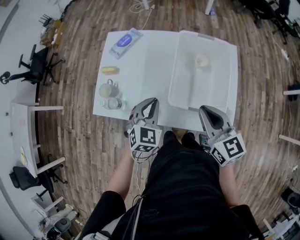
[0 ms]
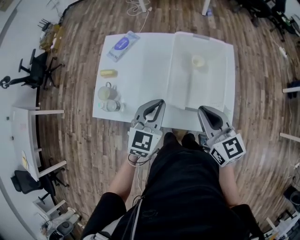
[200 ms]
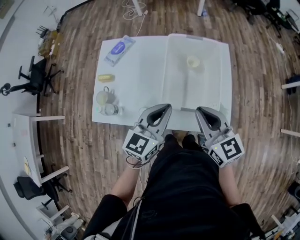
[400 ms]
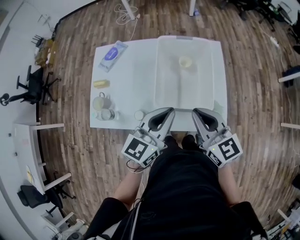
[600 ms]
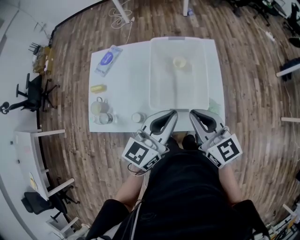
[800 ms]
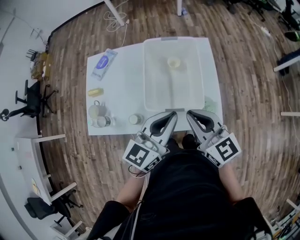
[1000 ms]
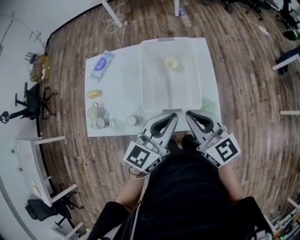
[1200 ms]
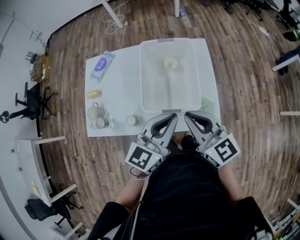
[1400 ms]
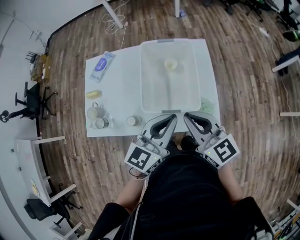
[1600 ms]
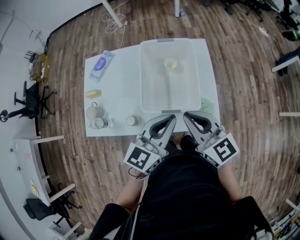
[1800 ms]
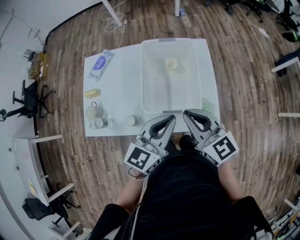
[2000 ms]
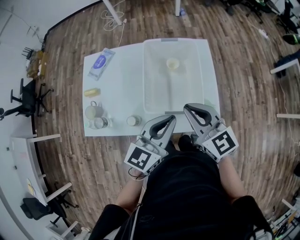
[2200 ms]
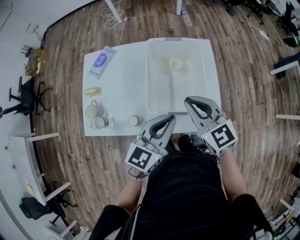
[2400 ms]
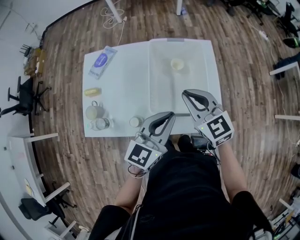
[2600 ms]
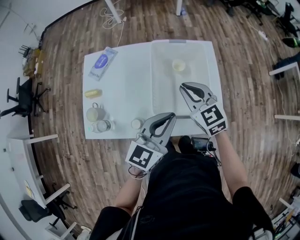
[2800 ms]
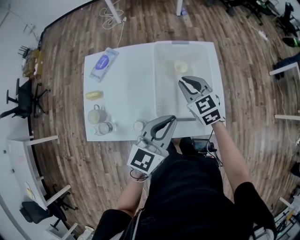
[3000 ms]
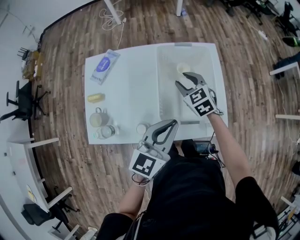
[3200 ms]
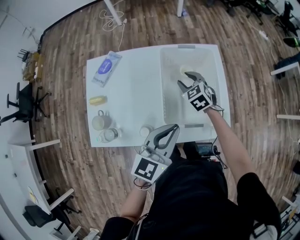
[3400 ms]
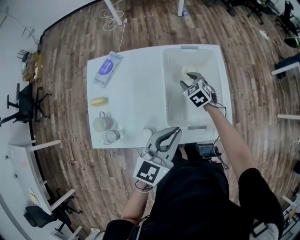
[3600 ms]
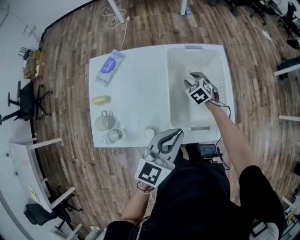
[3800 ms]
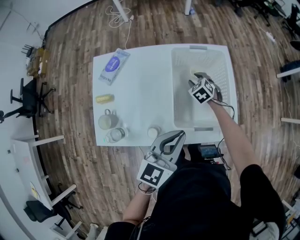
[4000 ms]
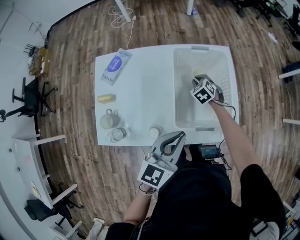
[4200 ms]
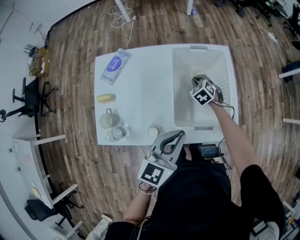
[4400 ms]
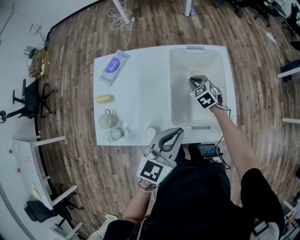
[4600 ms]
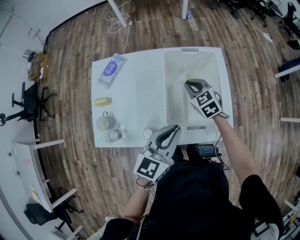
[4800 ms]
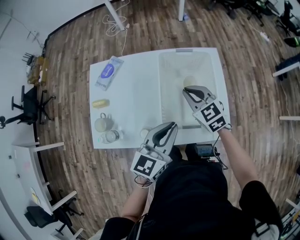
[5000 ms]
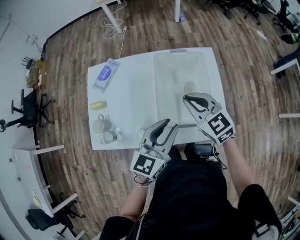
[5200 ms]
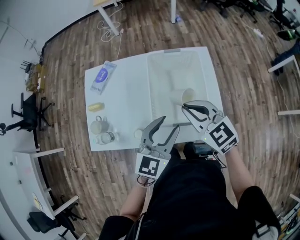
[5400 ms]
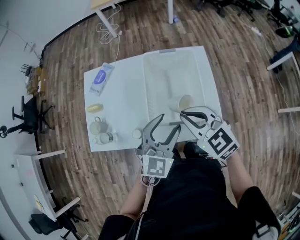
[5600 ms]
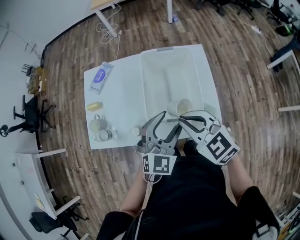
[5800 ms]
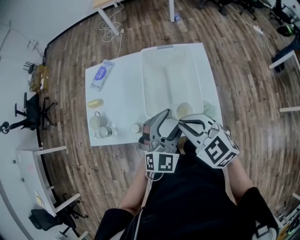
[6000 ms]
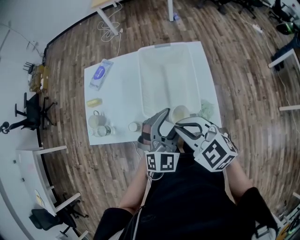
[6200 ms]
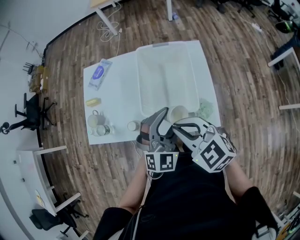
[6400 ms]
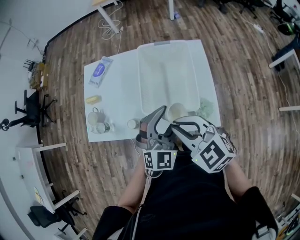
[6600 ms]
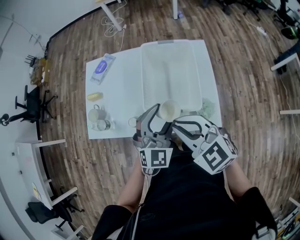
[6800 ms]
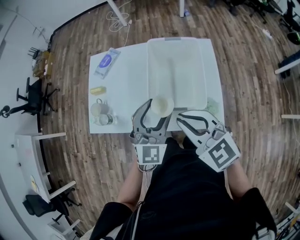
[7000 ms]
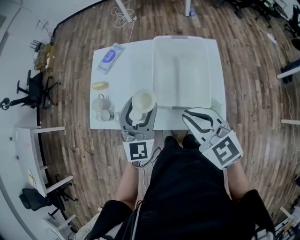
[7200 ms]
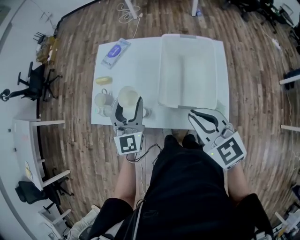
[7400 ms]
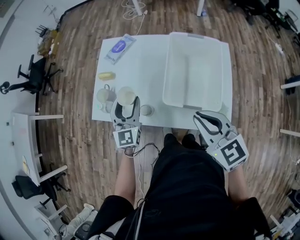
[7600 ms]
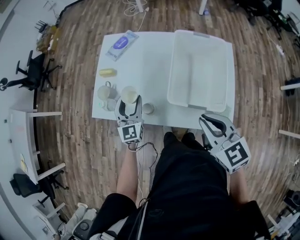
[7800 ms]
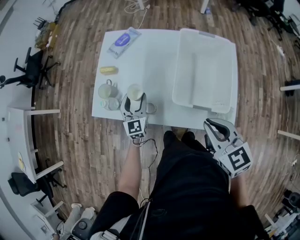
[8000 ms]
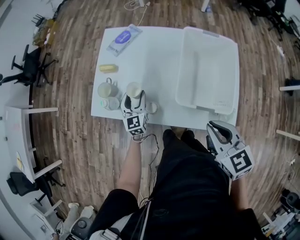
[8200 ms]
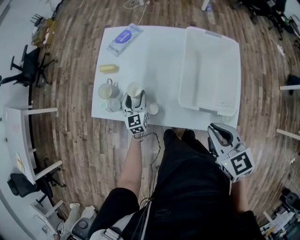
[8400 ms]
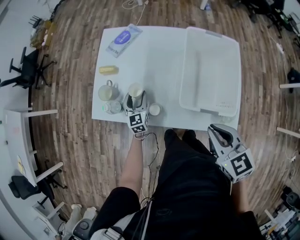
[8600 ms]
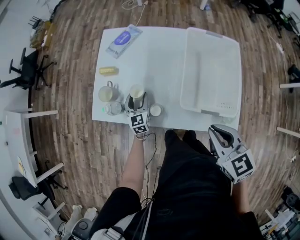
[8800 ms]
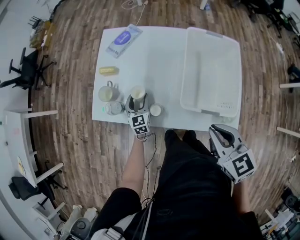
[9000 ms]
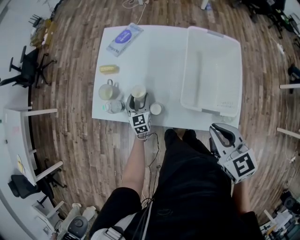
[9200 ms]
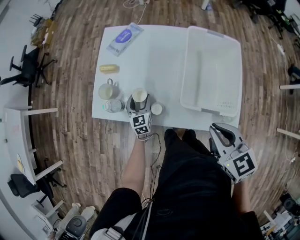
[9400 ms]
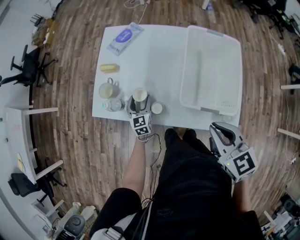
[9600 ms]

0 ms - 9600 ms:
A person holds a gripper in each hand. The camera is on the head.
0 ms - 1600 ms: The left gripper travels to the right and upward by approximately 20 cm, and rotates roughly 50 degrees; the right gripper moves to the right, approximately 5 cm.
1600 ms - 3200 ms: The left gripper heads to the left, covering approximately 10 cm; the right gripper is displaced forward and downward by some 25 cm, rotates about 30 degrees, and opens its fingers.
3200 ms - 4800 ms: The right gripper goes downward and returns, some 15 cm each way, and closes up.
4800 ms - 6400 ms: The right gripper is displaced backward and upward by approximately 30 cm, and turns by roughly 20 degrees. Meanwhile the left gripper travels to the right by approximately 10 cm, rotates around the line of its fingers by approximately 50 degrees, clockwise from behind, and opens.
6400 ms - 8000 ms: The left gripper shifts some 35 cm to the left, forward and downward, and swivels roughly 50 degrees.
8000 ms - 9600 ms: The left gripper goes about 10 cm downward.

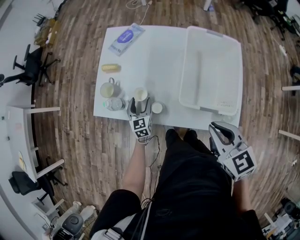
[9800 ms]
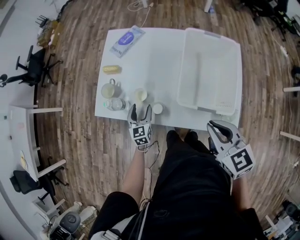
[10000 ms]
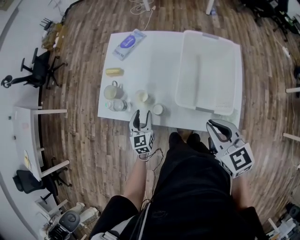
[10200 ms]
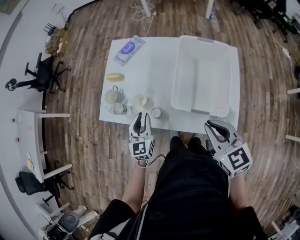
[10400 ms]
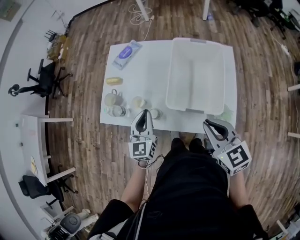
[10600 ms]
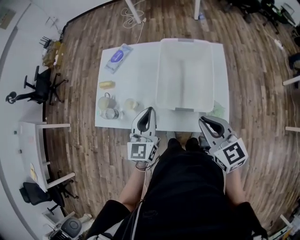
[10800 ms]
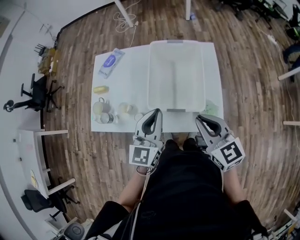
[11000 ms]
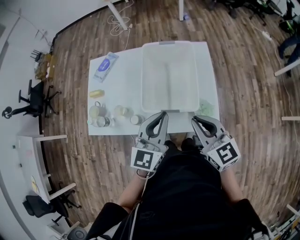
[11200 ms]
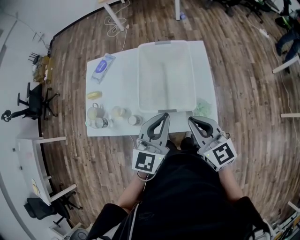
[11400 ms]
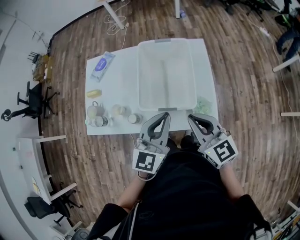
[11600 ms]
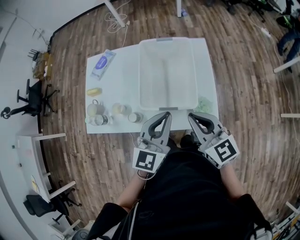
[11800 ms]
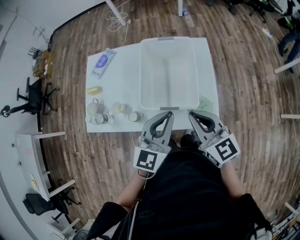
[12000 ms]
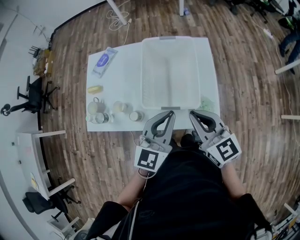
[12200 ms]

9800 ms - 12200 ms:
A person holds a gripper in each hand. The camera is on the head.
9800 ms - 11000 ms: The right gripper goes about 10 cm to the right. Meanwhile the left gripper heads upward, to the right and backward, covering some 35 cm, changes its angle by about 30 degrees, and closes its fingers.
11000 ms - 12200 ms: The left gripper heads to the right, covering some 5 cm.

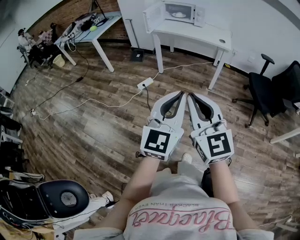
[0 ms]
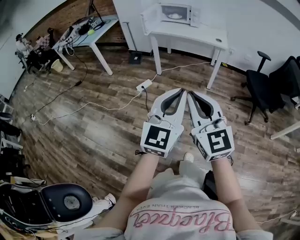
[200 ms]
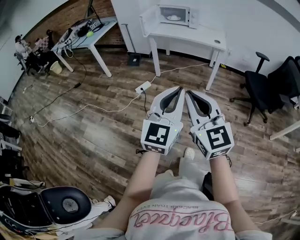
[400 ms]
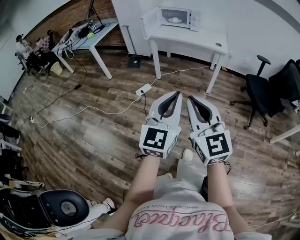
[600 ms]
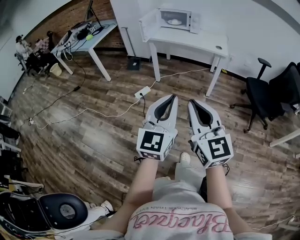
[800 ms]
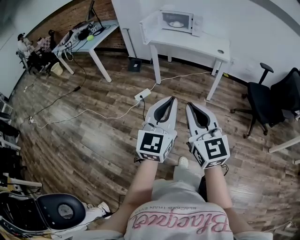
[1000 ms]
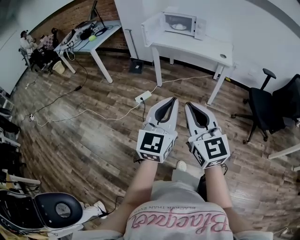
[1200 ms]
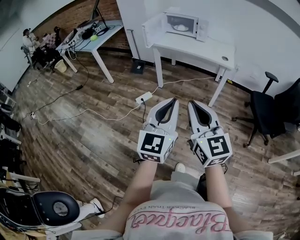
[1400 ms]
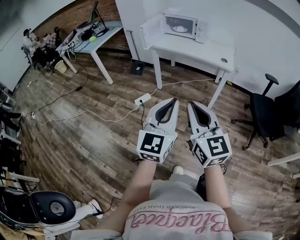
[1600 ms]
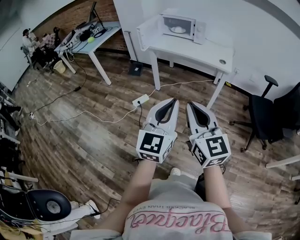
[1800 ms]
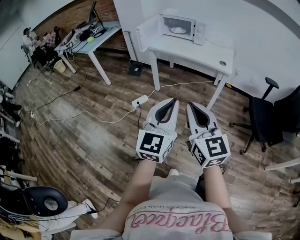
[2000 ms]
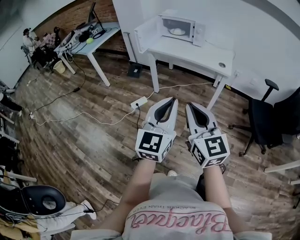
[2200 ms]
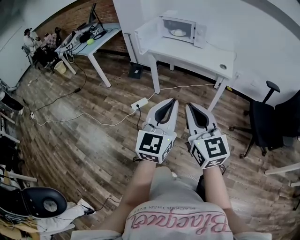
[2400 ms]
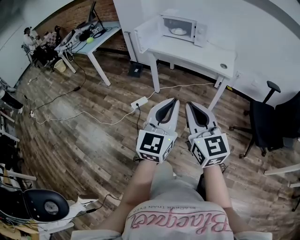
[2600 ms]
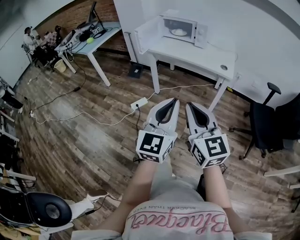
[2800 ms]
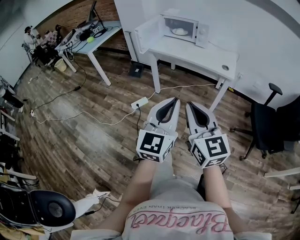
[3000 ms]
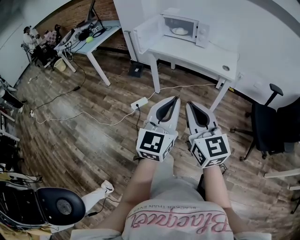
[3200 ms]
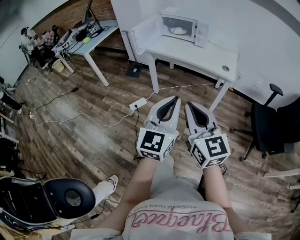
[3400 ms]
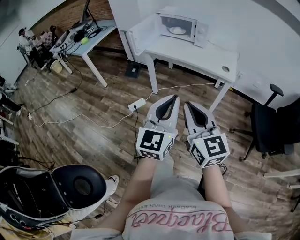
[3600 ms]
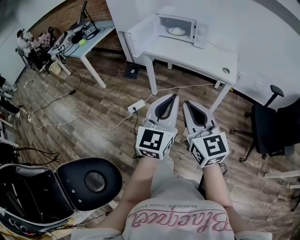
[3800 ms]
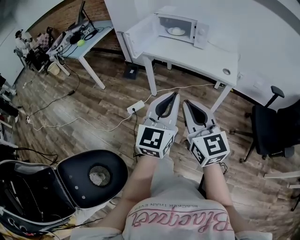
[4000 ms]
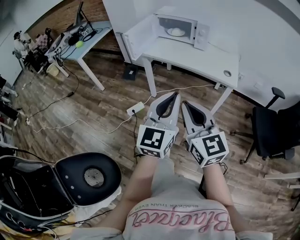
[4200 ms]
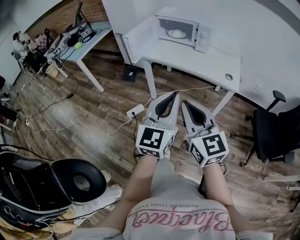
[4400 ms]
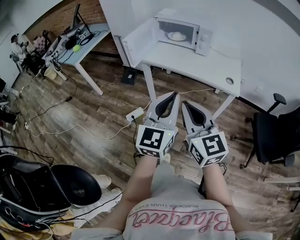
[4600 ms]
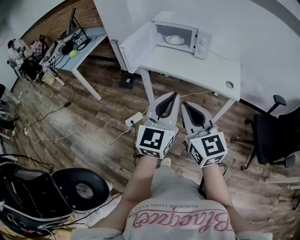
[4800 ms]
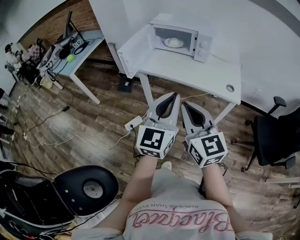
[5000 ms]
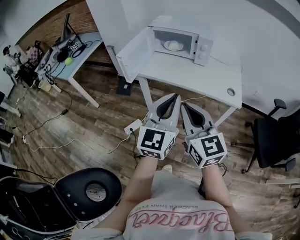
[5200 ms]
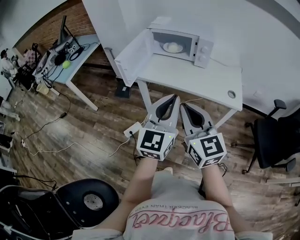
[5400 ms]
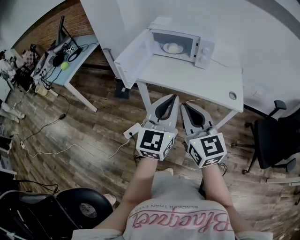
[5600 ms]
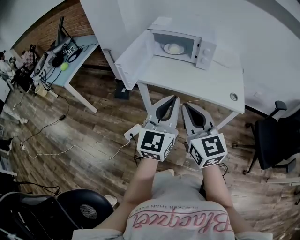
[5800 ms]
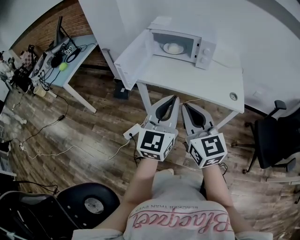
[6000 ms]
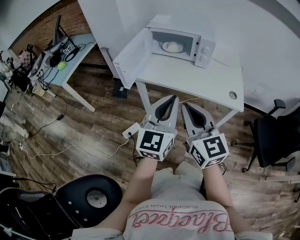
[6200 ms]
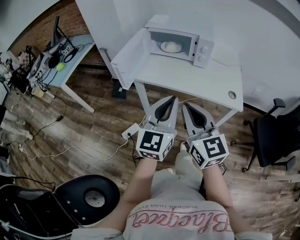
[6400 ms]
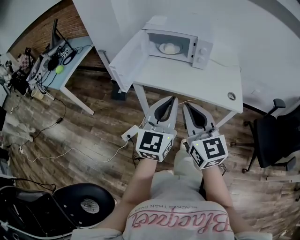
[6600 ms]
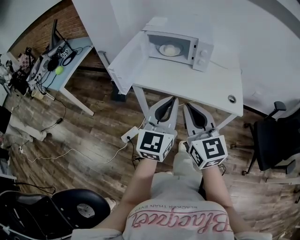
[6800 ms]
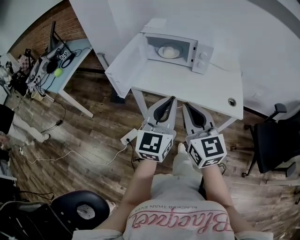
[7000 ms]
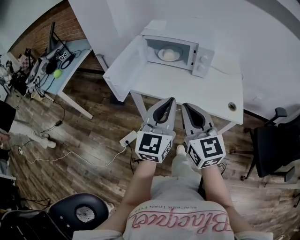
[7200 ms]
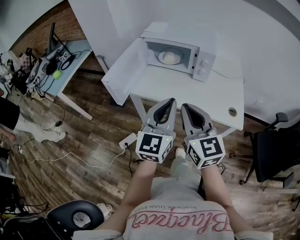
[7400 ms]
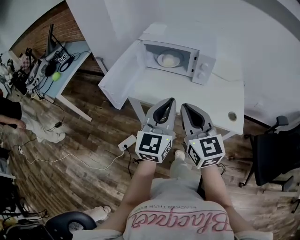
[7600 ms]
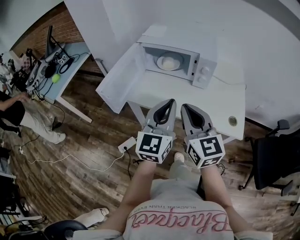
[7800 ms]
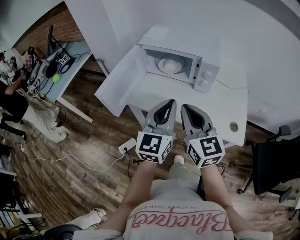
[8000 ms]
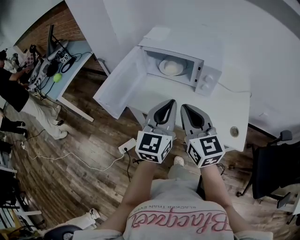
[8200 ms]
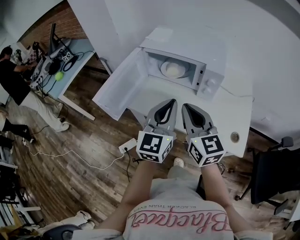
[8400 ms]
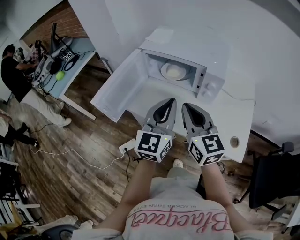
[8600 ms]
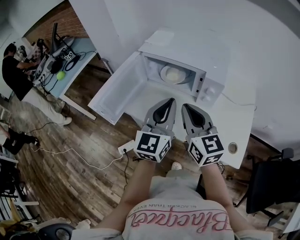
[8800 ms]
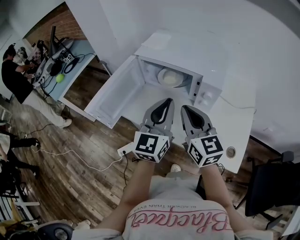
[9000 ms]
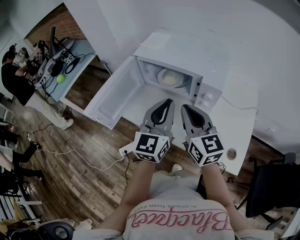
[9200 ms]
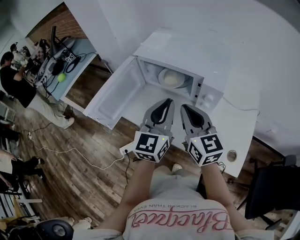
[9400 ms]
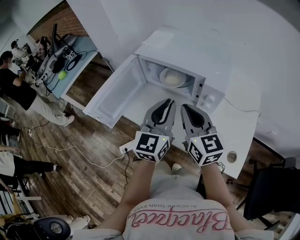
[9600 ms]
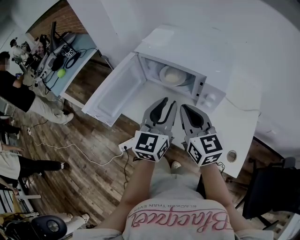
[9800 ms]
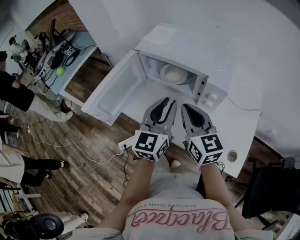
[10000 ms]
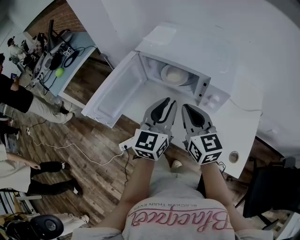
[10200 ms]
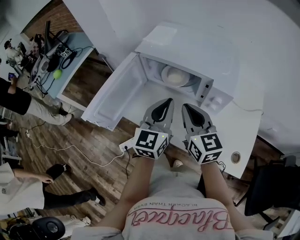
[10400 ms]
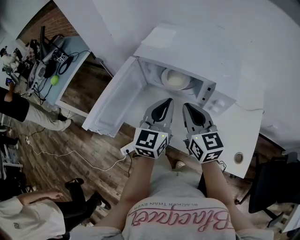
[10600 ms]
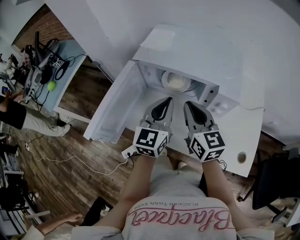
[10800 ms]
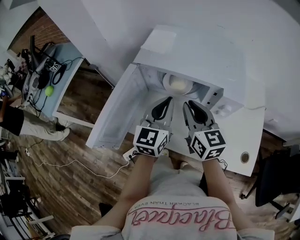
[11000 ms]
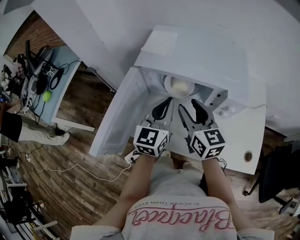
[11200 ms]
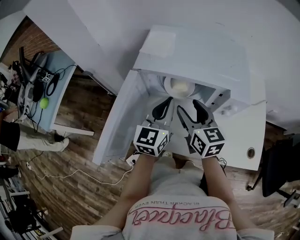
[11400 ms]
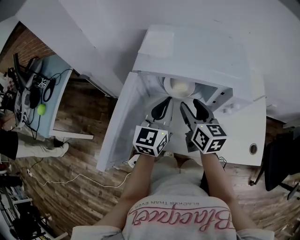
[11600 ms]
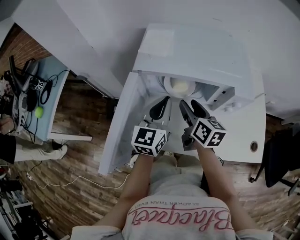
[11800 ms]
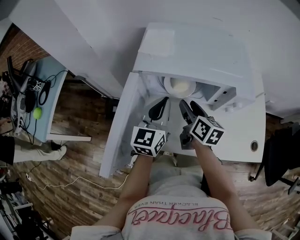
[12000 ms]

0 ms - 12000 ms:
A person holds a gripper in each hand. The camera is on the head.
0 ms - 1600 ms: The left gripper is displaced forward by about 15 cm. The right gripper moves forward and to the right, roughly 15 cm.
1600 ms - 3000 ms: The right gripper moves forward, approximately 10 cm. The left gripper shifts some 10 cm forward and to the right.
3000 ms - 4400 ms: Both grippers travel together forward, about 15 cm.
4400 ms - 6000 ms: Both grippers move forward, roughly 20 cm.
6000 ms - 7600 ms: The grippers both shift forward by roughly 15 cm.
7600 ms - 9000 ms: Both grippers move forward, some 15 cm.
9000 ms - 10400 ms: The right gripper goes about 5 cm forward. The left gripper goes about 10 cm forward and downward, and opens, then closes once more.
10400 ms - 12000 ms: The right gripper heads forward, downward and to the left, covering some 15 cm, swivels roughly 40 degrees, and opens its fingers, while the left gripper is displaced forward, to the left and downward by roughly 15 cm.
